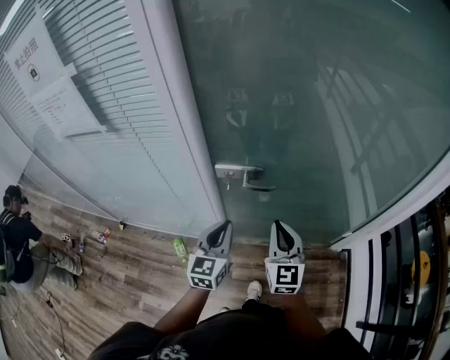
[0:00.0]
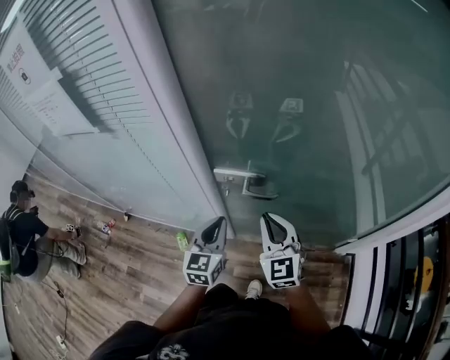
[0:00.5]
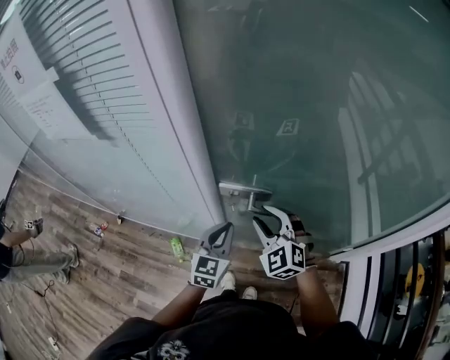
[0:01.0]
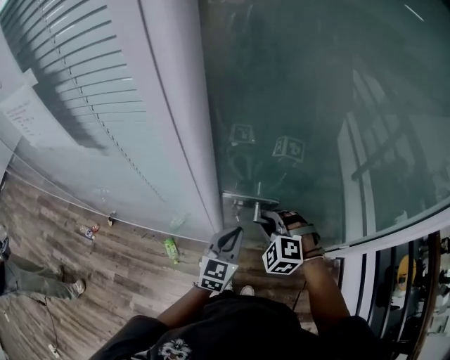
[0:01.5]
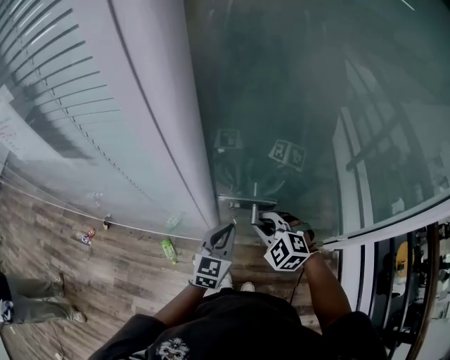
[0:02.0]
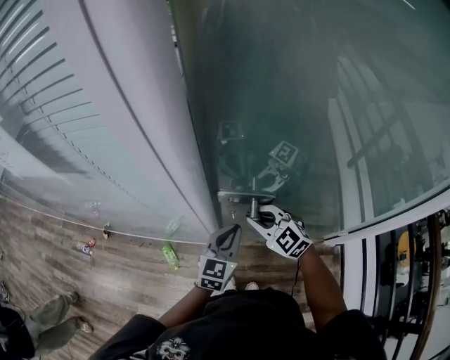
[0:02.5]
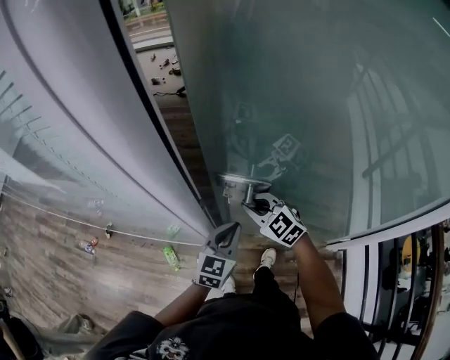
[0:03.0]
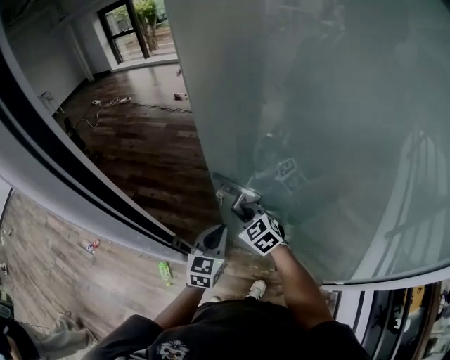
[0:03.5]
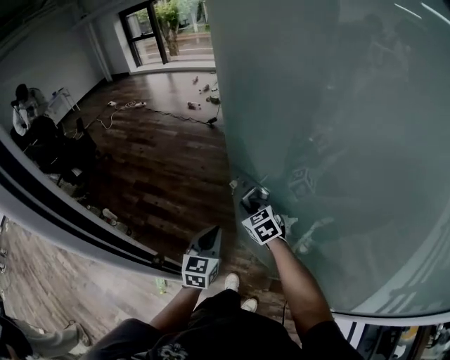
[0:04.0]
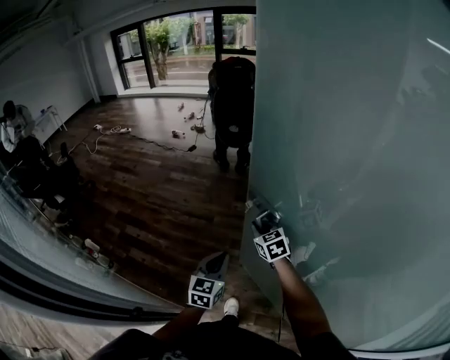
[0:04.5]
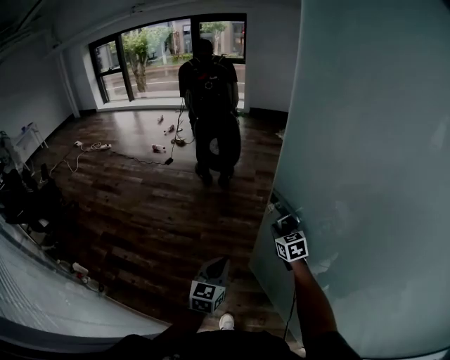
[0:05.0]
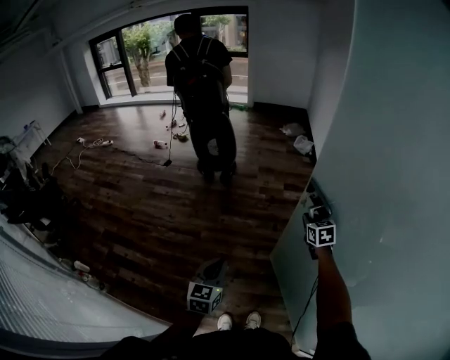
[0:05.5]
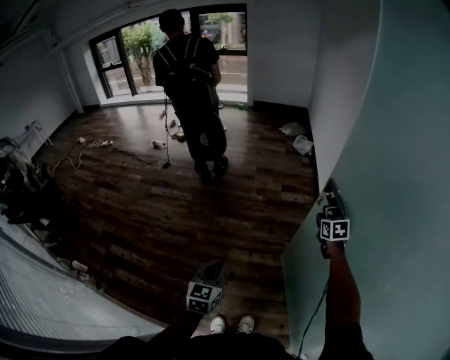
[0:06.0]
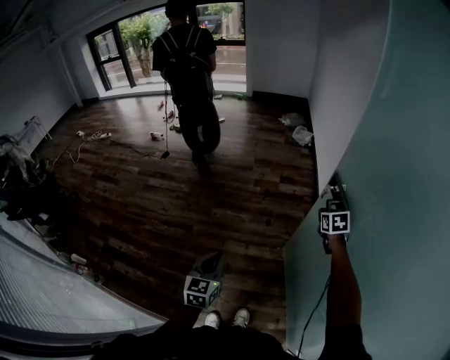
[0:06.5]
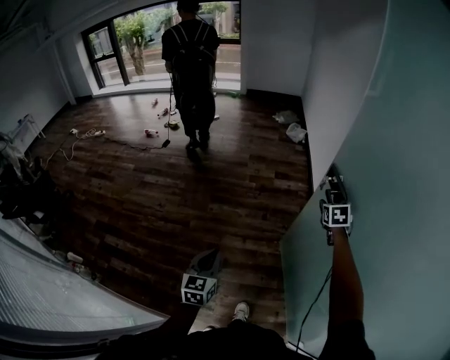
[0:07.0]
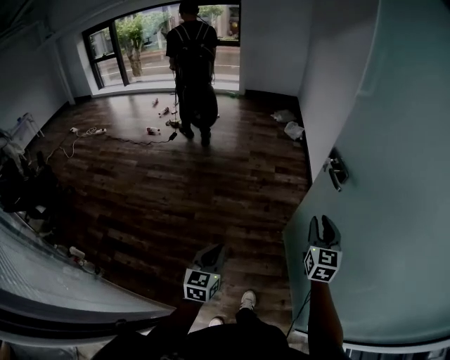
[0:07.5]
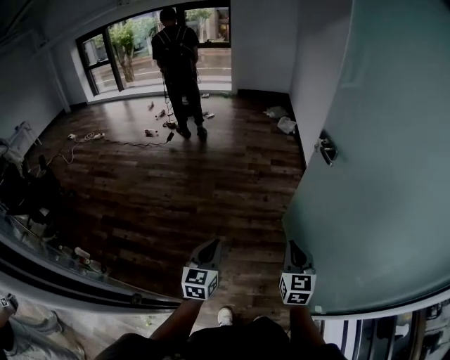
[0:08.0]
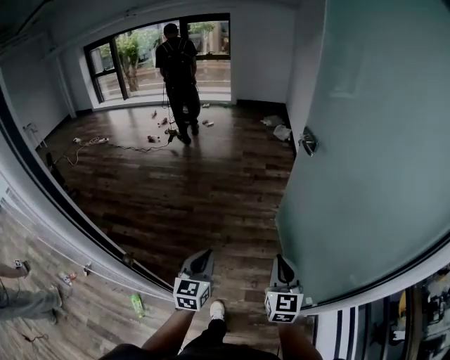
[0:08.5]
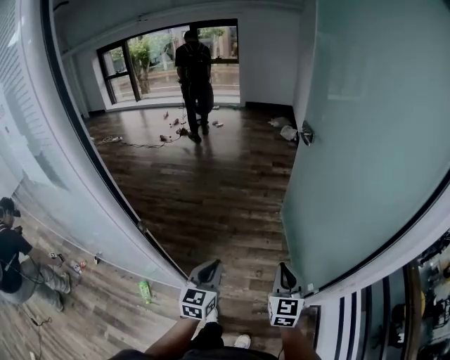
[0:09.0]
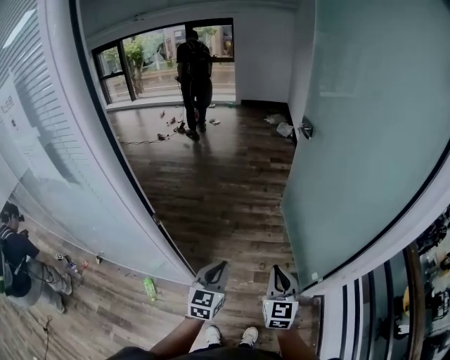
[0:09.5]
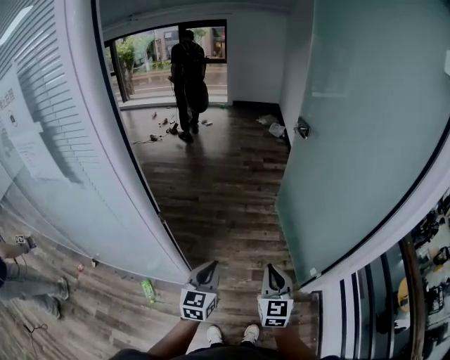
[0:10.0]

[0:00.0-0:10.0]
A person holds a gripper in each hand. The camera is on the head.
0.0 to 2.0 s: The left gripper is displaced forward and downward by about 15 cm; the right gripper shifts approximately 20 cm forward, downward and to the left, tips its fingers downward by roughly 40 degrees, and opens and closes again.
2.0 to 4.0 s: The two grippers go approximately 35 cm forward and to the right. The right gripper changes its angle by roughly 30 degrees.
4.0 to 6.0 s: The right gripper travels to the right and forward by some 70 cm, and changes its angle by about 40 degrees. The left gripper heads forward and to the right, covering approximately 35 cm.
6.0 to 8.0 s: The left gripper shifts approximately 25 cm backward. Meanwhile the right gripper shifts roughly 50 cm backward, swivels about 30 degrees, and opens, then closes once more.
8.0 to 10.0 s: The two grippers travel together, backward, about 50 cm.

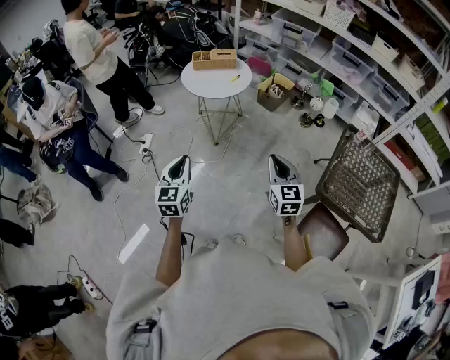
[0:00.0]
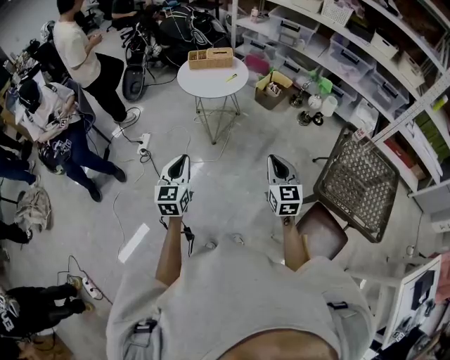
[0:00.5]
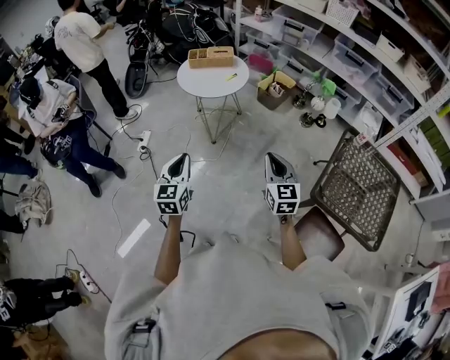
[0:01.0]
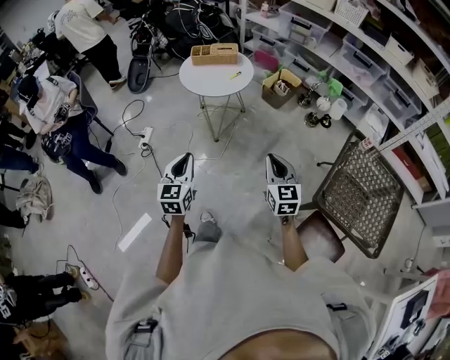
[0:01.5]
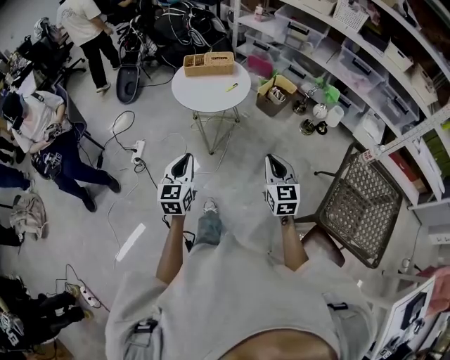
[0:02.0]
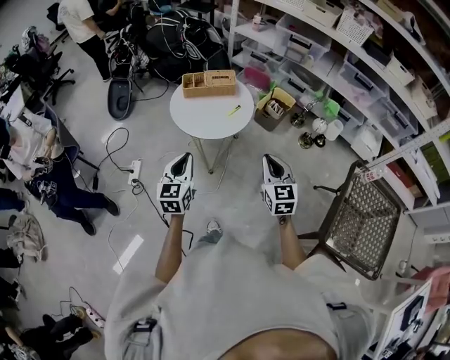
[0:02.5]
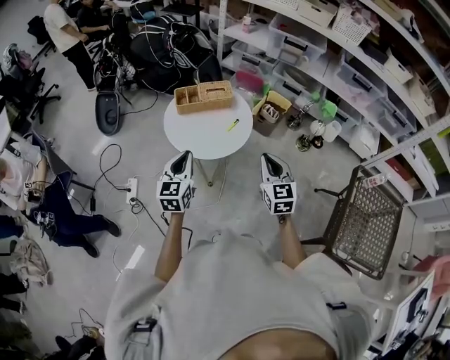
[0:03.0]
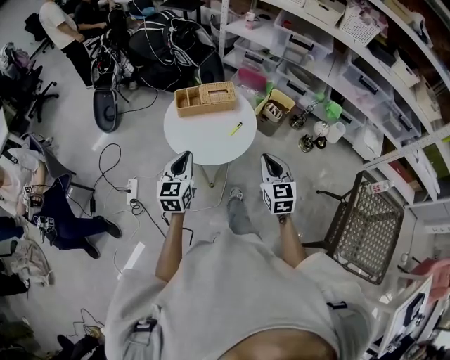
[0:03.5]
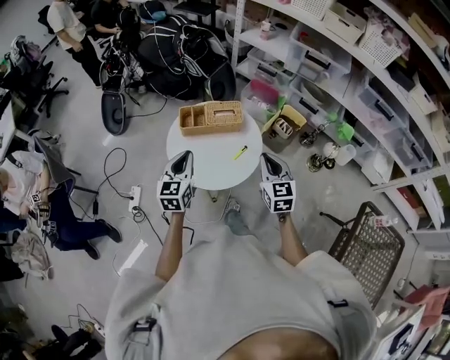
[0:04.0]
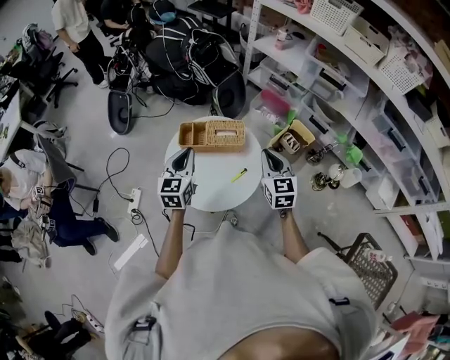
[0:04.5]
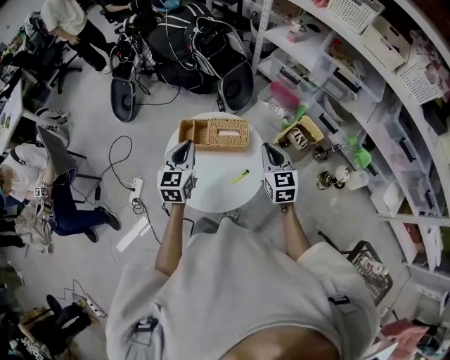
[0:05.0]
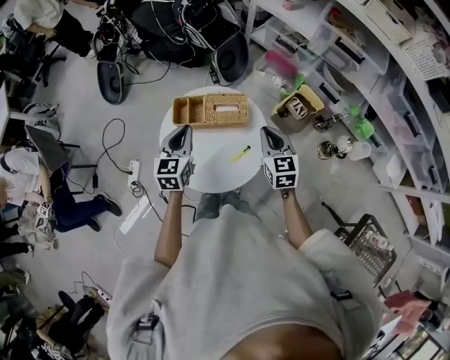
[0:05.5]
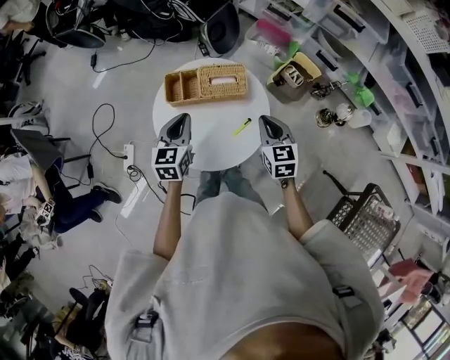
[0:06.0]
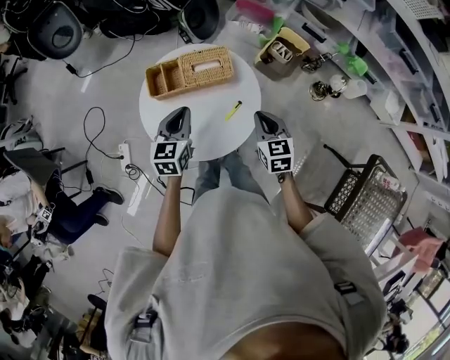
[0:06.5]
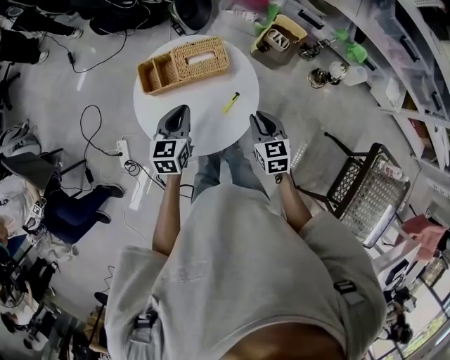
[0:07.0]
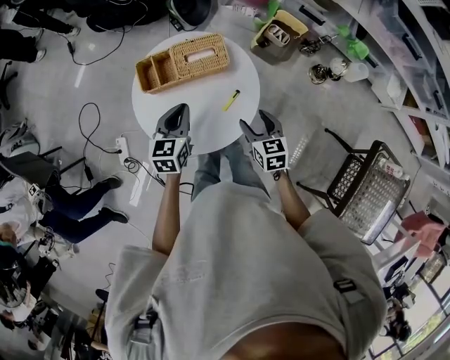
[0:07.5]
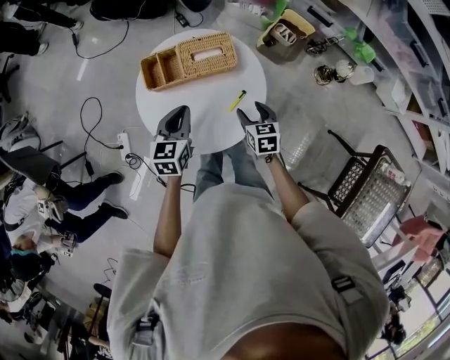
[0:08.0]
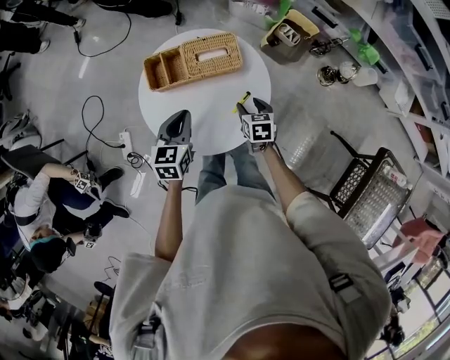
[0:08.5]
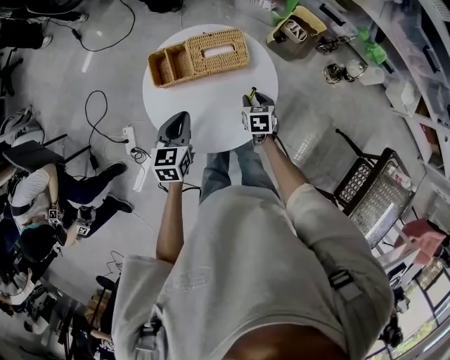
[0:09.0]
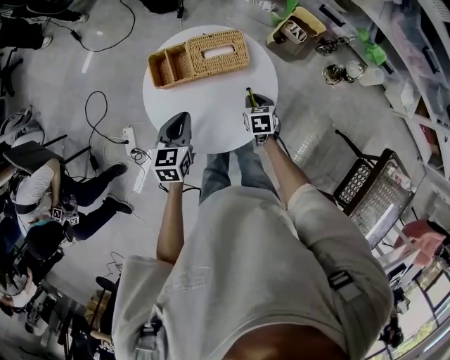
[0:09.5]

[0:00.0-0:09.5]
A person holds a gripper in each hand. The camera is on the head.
0.0 to 2.0 s: The two grippers go about 15 cm forward.
2.0 to 4.0 s: The two grippers travel together, forward, approximately 40 cm.
4.0 to 5.5 s: The two grippers go about 15 cm forward.
5.5 to 7.5 s: The left gripper shifts roughly 10 cm downward. Meanwhile the right gripper is displaced backward and downward by some 20 cm, turns by roughly 20 degrees, and opens its fingers.
7.5 to 9.5 s: The left gripper moves roughly 5 cm. The right gripper goes approximately 15 cm downward and forward, and closes.

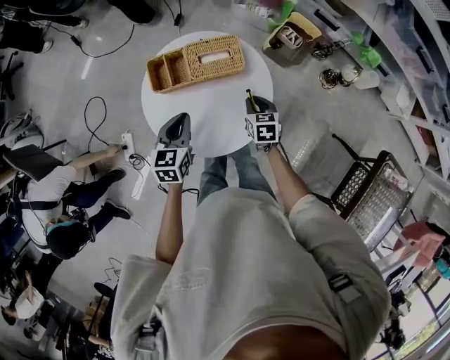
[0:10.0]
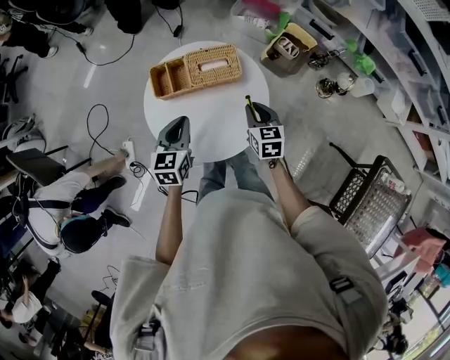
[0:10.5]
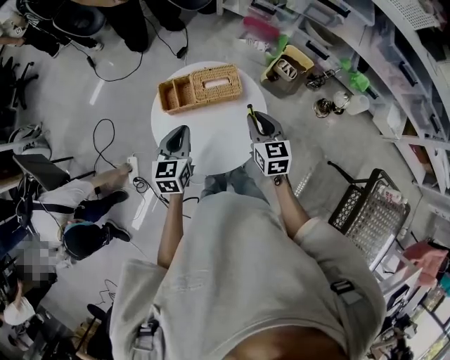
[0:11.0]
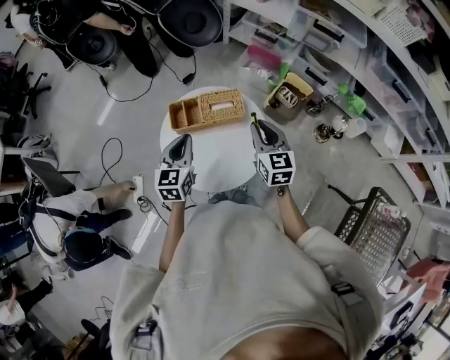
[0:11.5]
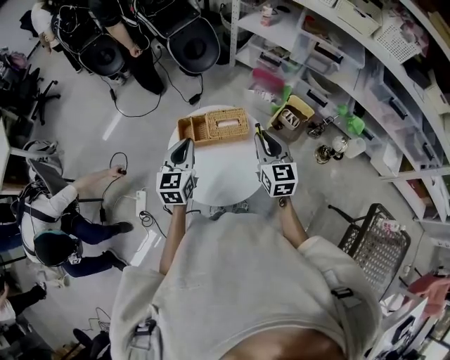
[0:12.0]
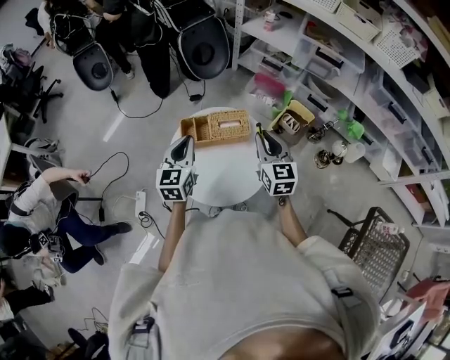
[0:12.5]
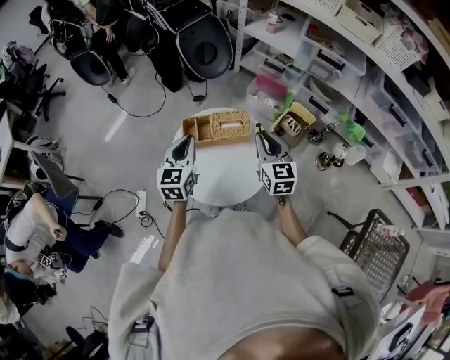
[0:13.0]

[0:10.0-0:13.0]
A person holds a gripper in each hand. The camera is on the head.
10.0 to 11.5 s: The left gripper heads upward, covering roughly 10 cm, while the right gripper moves upward, some 25 cm, and tilts its fingers about 30 degrees upward.
11.5 to 13.0 s: The left gripper travels upward by approximately 5 cm.

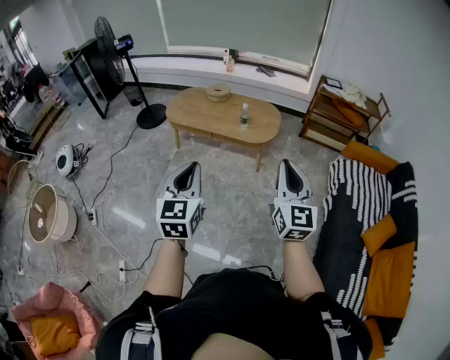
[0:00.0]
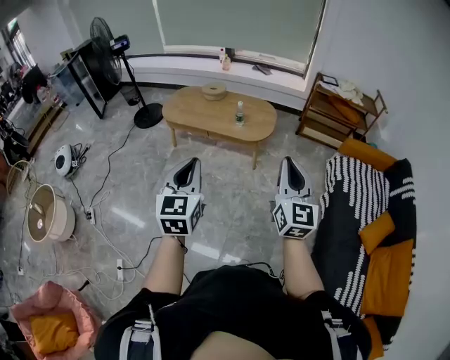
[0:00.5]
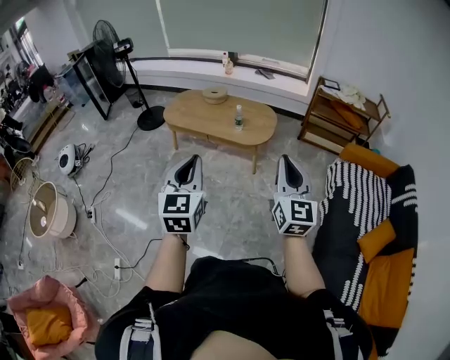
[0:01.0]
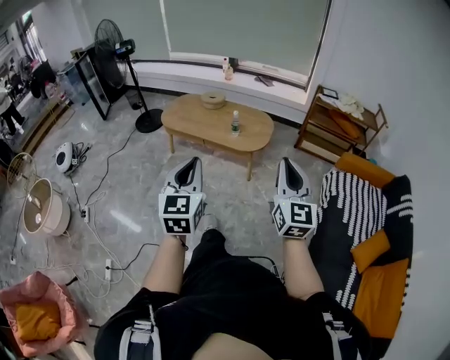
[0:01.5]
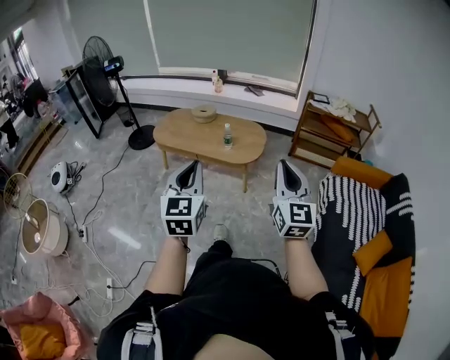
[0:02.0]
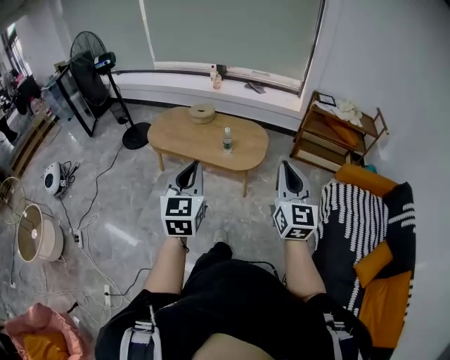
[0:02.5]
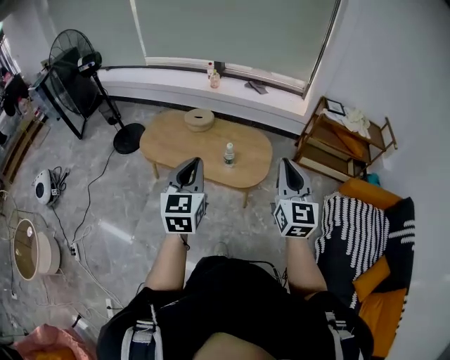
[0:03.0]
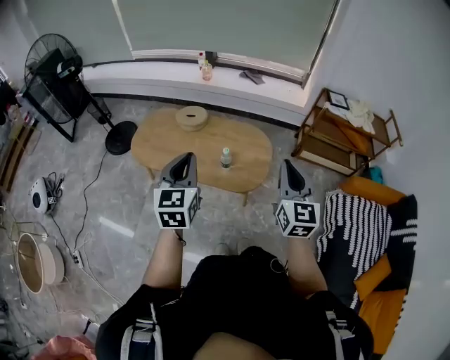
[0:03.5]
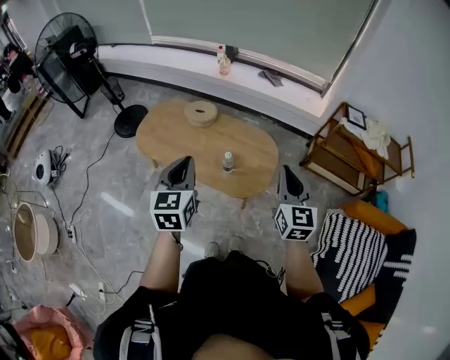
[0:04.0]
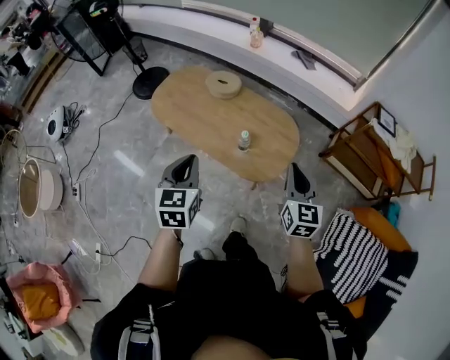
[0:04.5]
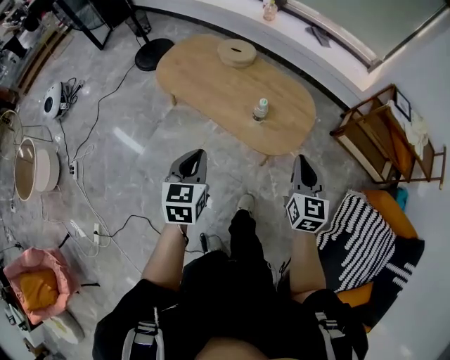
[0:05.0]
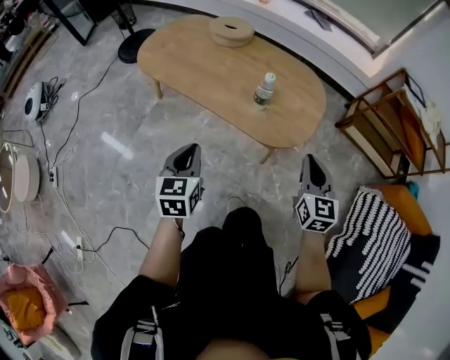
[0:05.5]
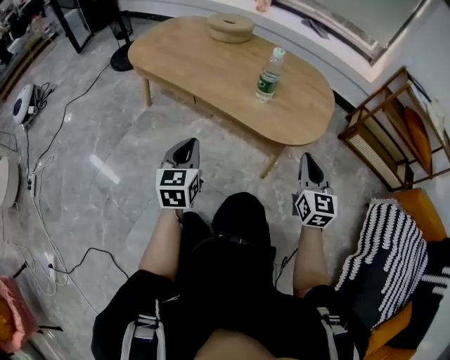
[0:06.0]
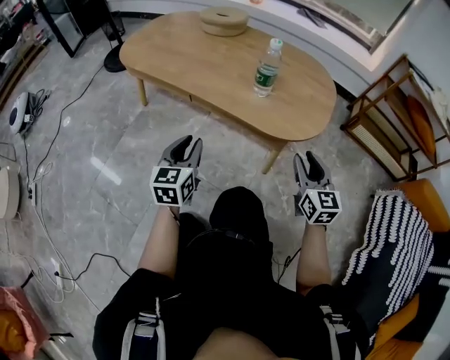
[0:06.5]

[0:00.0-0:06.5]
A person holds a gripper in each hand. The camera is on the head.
0.0 to 2.0 s: The two grippers go roughly 15 cm to the right and forward.
2.0 to 4.5 s: Both grippers are carried forward, approximately 60 cm. The left gripper rotates roughly 30 degrees. Meanwhile the right gripper changes its angle by some 30 degrees.
4.5 to 6.5 s: Both grippers travel together downward, some 60 cm. The right gripper opens up.
